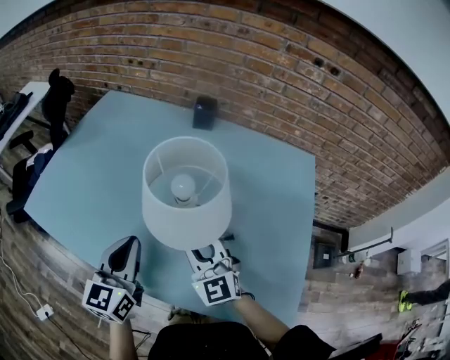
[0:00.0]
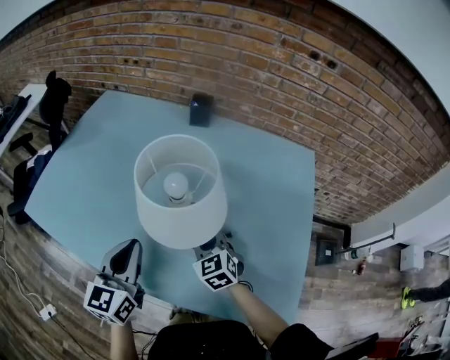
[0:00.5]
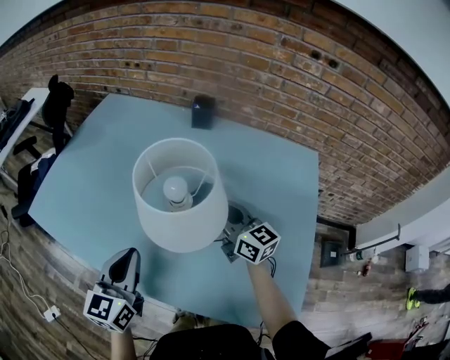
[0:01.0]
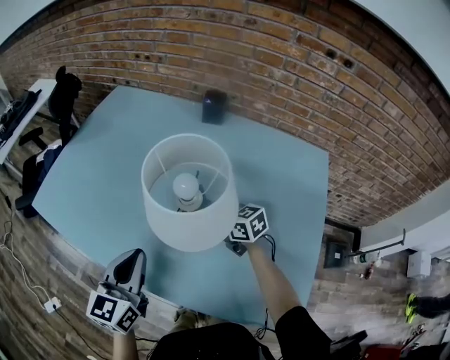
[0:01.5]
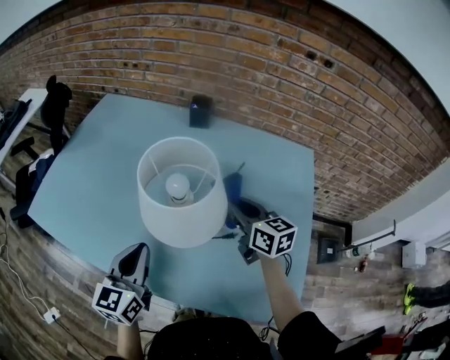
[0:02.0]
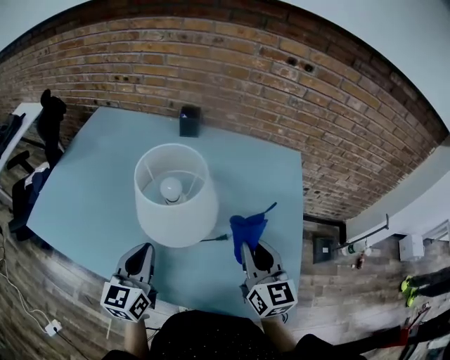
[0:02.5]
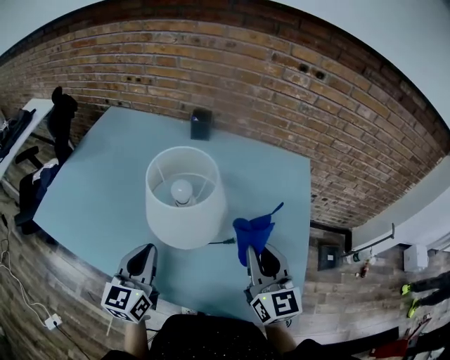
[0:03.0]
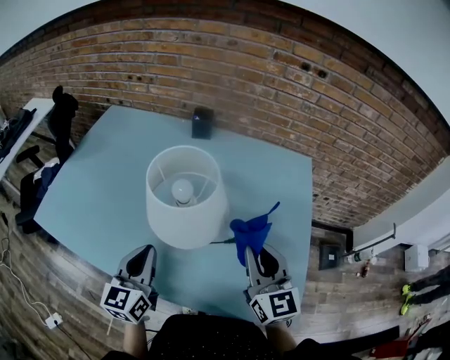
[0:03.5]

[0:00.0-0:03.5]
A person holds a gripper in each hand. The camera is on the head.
0:00.0 to 0:02.0: The right gripper goes left and right, roughly 15 cm each way, reversing 2 times, and rotates around the line of its fingers by about 50 degrees, clockwise from behind.
0:02.0 to 0:03.5: The right gripper moves backward and upward, approximately 15 cm, and changes its angle by some 30 degrees.

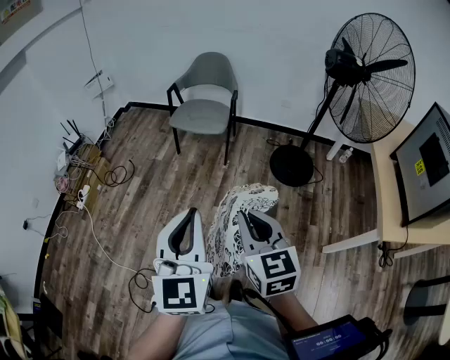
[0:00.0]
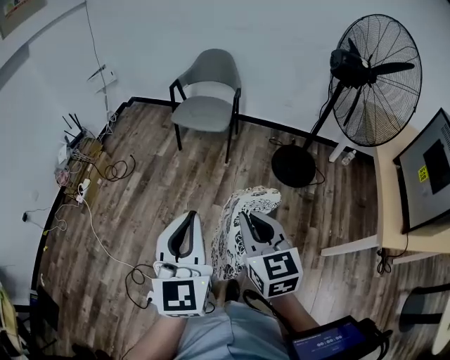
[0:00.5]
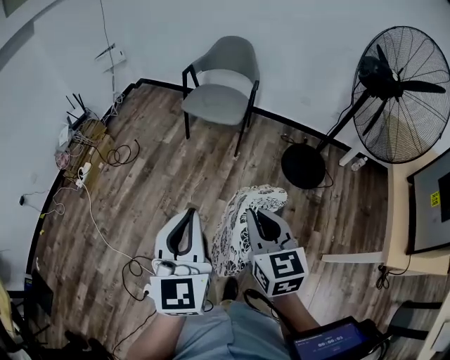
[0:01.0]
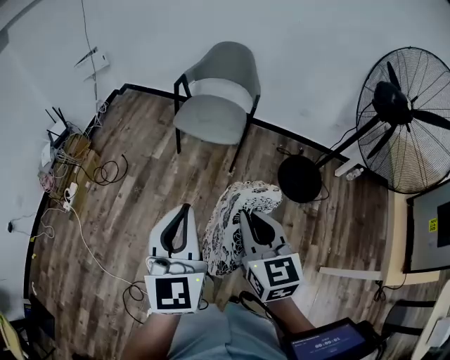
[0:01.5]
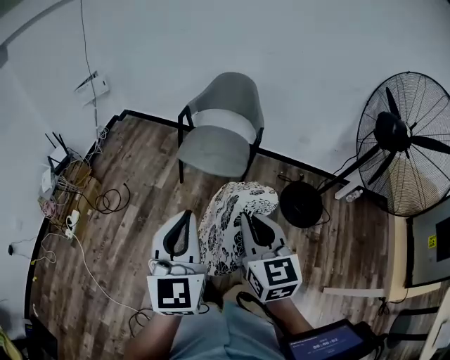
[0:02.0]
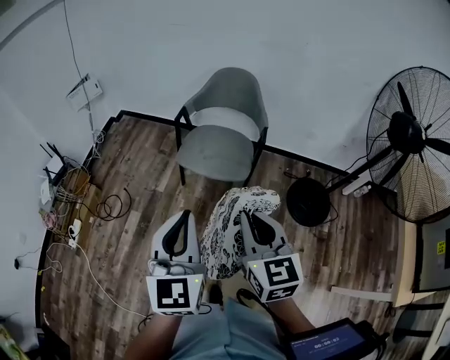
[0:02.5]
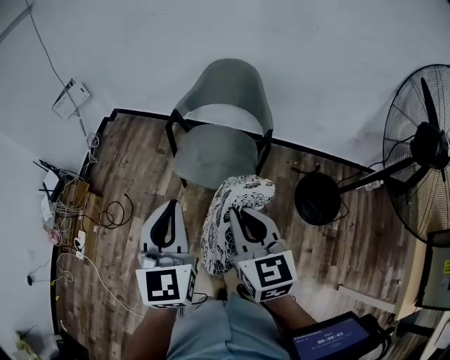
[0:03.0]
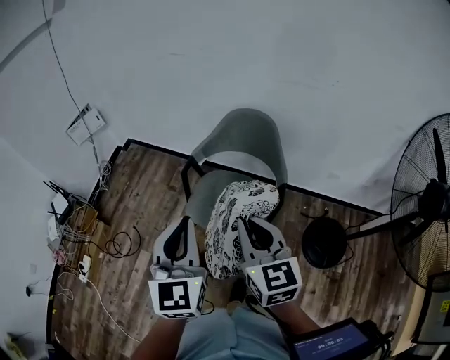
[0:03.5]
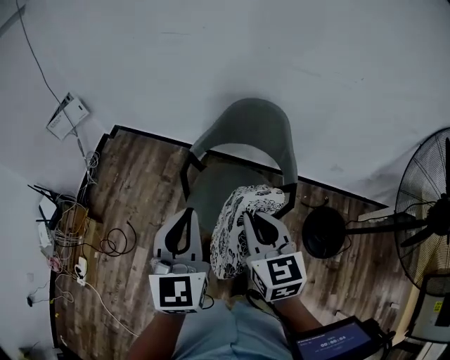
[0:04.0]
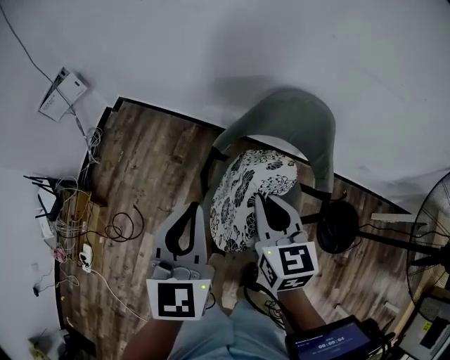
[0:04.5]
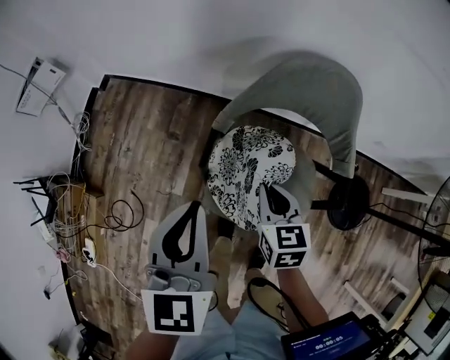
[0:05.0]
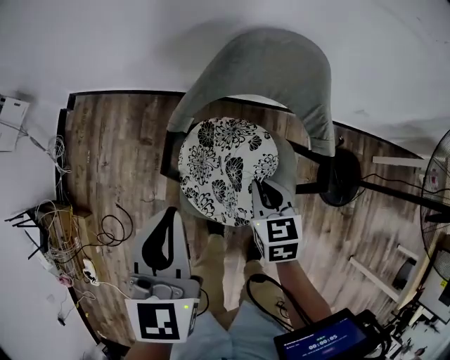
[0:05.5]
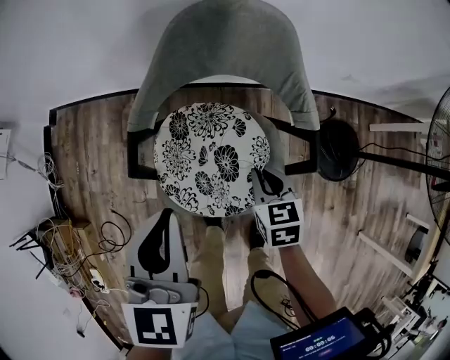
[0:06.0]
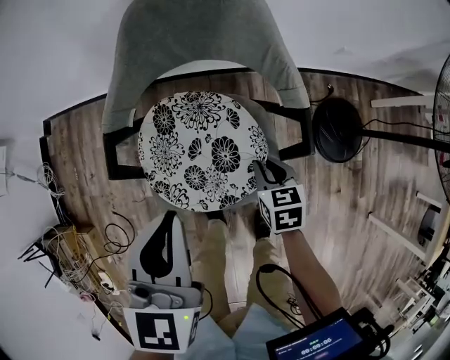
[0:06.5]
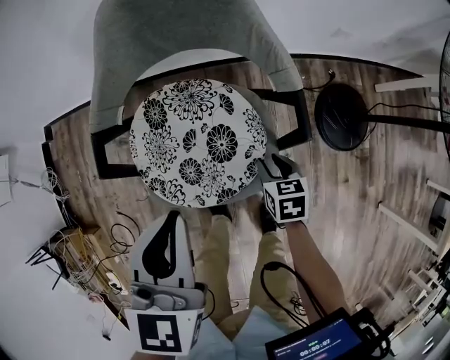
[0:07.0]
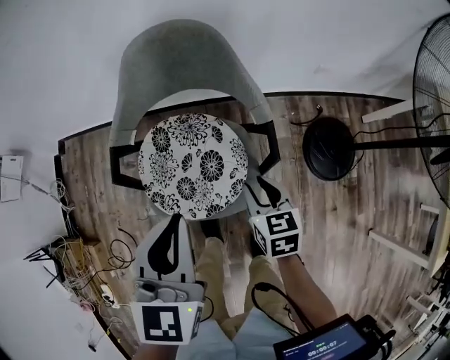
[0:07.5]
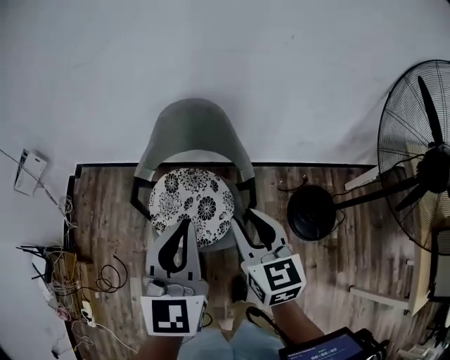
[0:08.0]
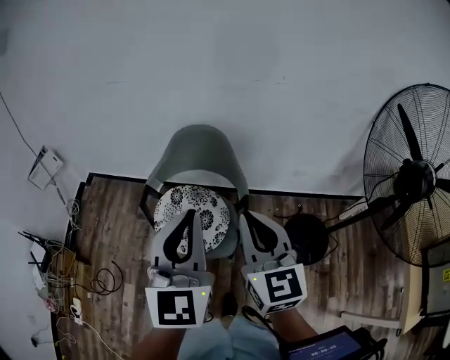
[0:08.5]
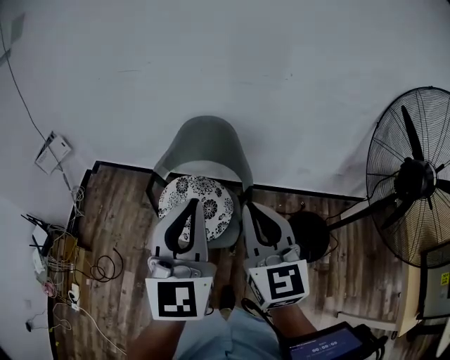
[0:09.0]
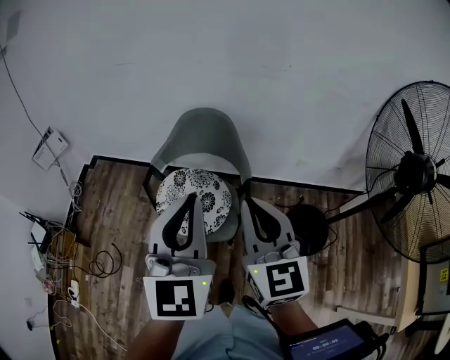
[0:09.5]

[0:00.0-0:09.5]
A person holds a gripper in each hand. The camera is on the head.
0:00.0 to 0:02.0: The grippers both shift forward by some 35 cm.
0:02.0 to 0:04.0: The pair of grippers is taken forward, some 50 cm.
0:04.0 to 0:05.5: The right gripper moves downward and forward, about 30 cm, and turns by about 30 degrees. The left gripper heads forward and downward, covering about 20 cm.
0:05.5 to 0:07.5: The right gripper is displaced to the right and backward by roughly 15 cm, travels downward and back again, roughly 20 cm each way, and opens up; the left gripper travels to the right by roughly 15 cm.
0:07.5 to 0:09.5: The left gripper heads upward and backward, covering approximately 30 cm, and rotates approximately 30 degrees; the right gripper is displaced upward by about 40 cm, tips its fingers upward by roughly 40 degrees, and closes its fingers.

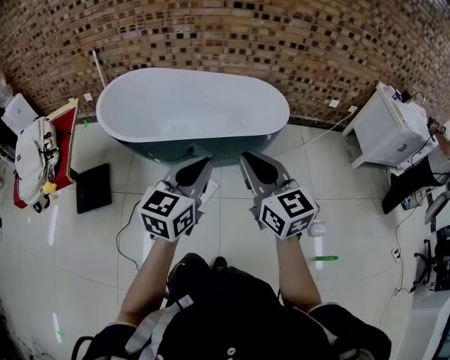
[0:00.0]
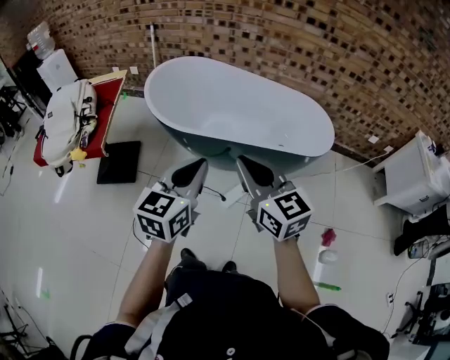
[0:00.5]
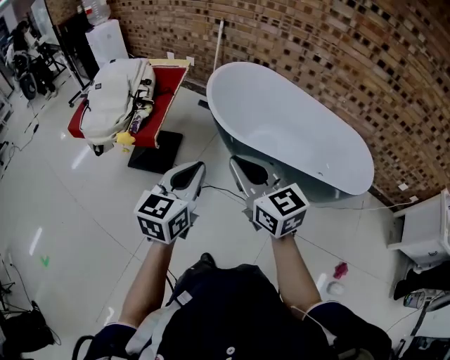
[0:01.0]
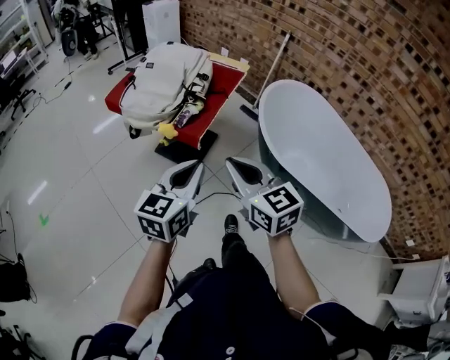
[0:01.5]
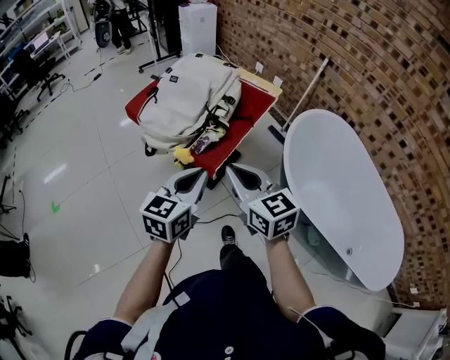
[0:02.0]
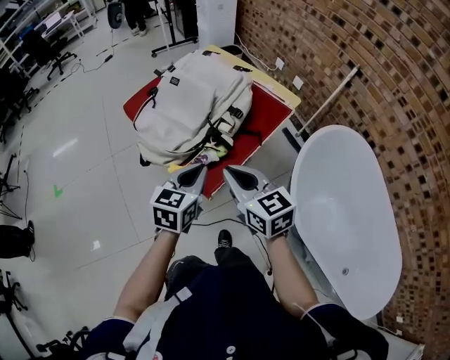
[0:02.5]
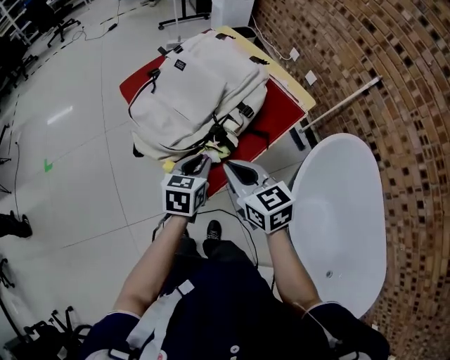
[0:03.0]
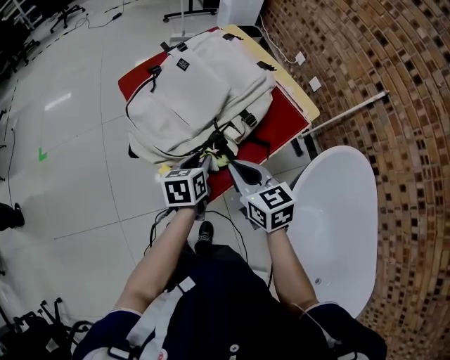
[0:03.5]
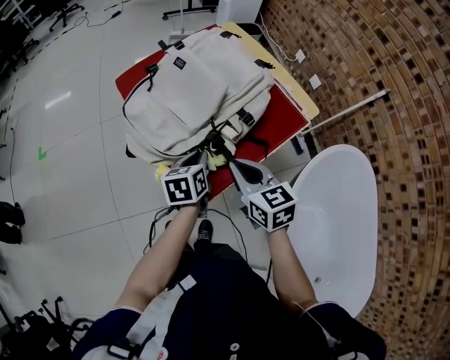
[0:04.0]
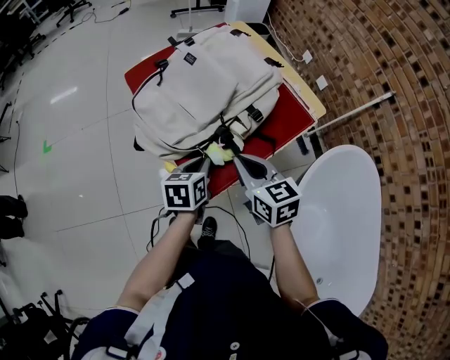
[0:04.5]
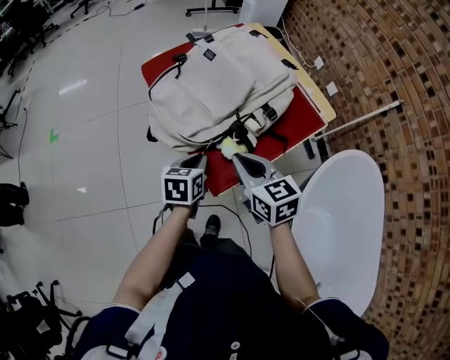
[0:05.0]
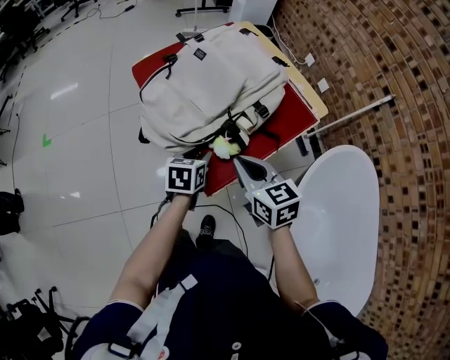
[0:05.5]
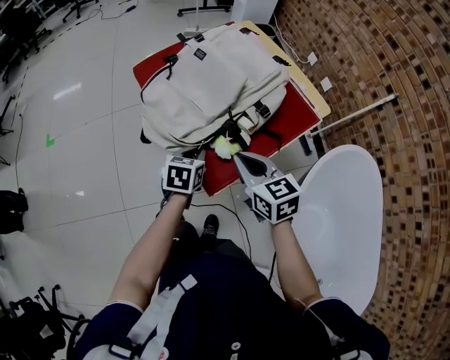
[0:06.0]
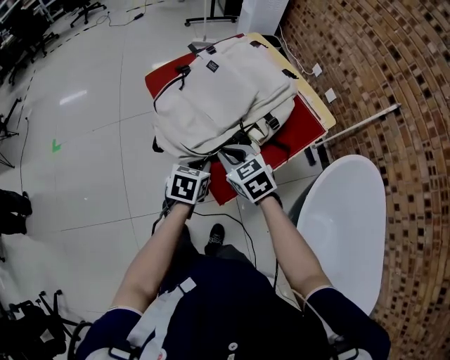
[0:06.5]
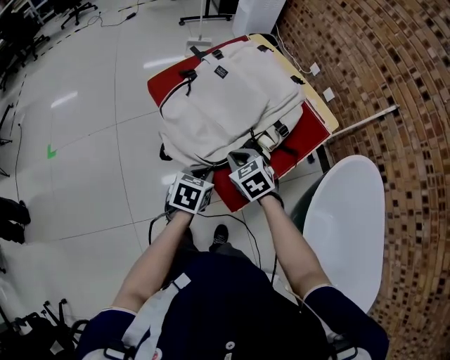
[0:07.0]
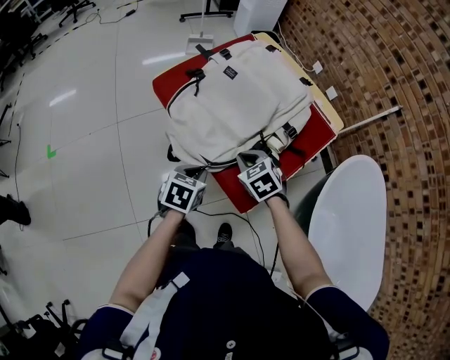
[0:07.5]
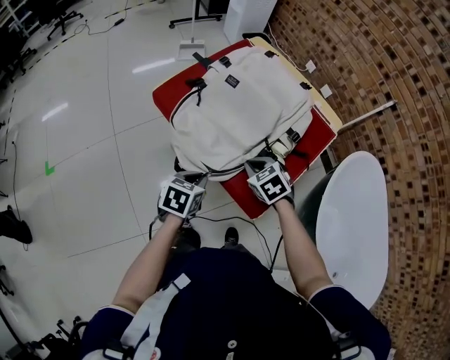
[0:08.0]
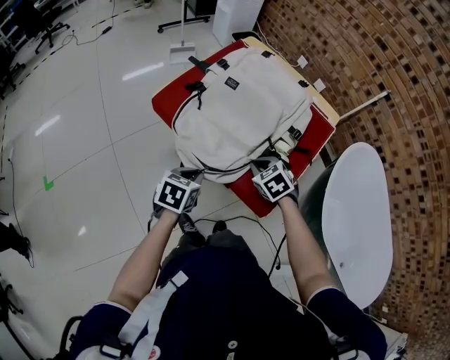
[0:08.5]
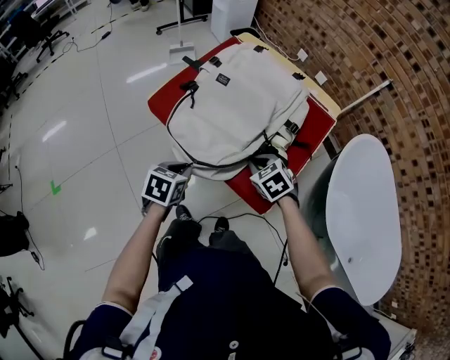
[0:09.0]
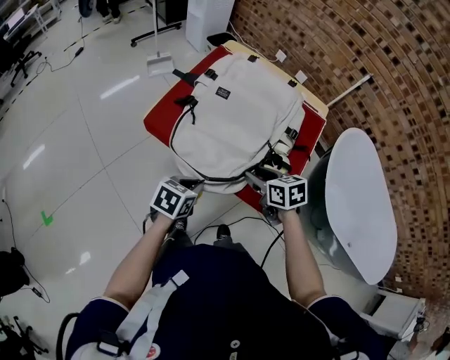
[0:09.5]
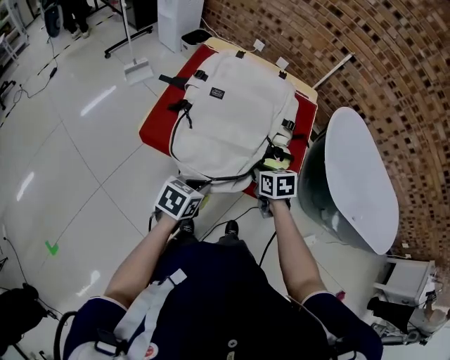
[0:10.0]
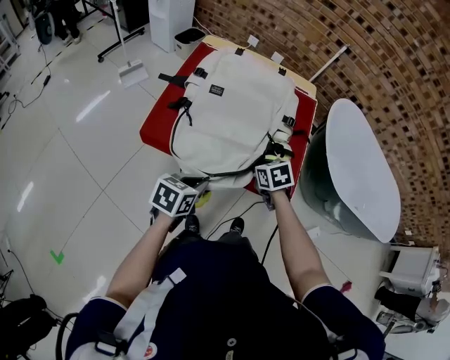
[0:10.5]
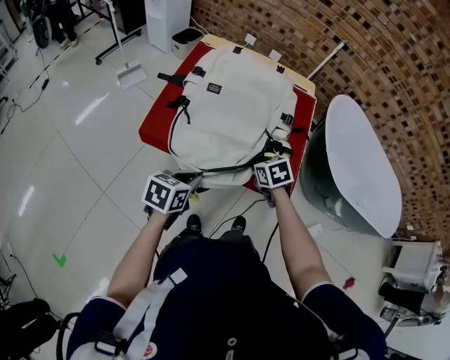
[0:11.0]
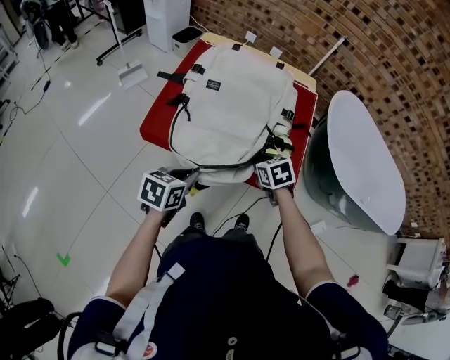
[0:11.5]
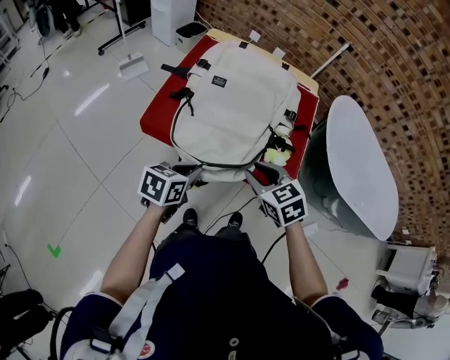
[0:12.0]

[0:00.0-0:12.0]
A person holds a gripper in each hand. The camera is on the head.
0:00.0 to 0:02.0: The two grippers travel together, approximately 70 cm. The left gripper changes its angle by approximately 50 degrees. The right gripper turns by approximately 60 degrees.
0:02.0 to 0:04.0: Both grippers travel together forward and downward, roughly 25 cm. The left gripper rotates approximately 50 degrees. The right gripper rotates roughly 20 degrees.
0:04.0 to 0:06.0: The left gripper changes place by some 5 cm, and opens and closes again.
0:06.0 to 0:08.0: The right gripper moves downward, to the left and forward, some 15 cm, and rotates about 30 degrees. The left gripper is displaced to the left by about 10 cm.
0:08.0 to 0:10.0: The right gripper rotates around the line of its fingers by some 50 degrees, clockwise from behind, and opens, then closes once more, while the left gripper changes place by approximately 5 cm, and turns by some 40 degrees.
0:10.0 to 0:12.0: The left gripper heads to the left, covering roughly 5 cm, while the right gripper heads upward and backward, covering roughly 10 cm, rotates roughly 20 degrees, and opens.

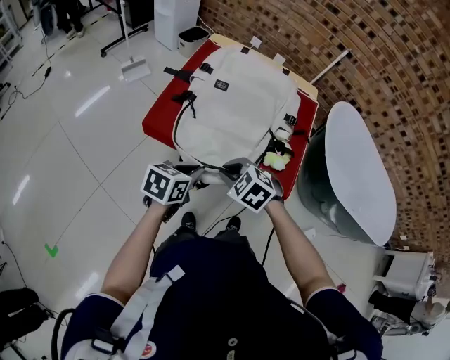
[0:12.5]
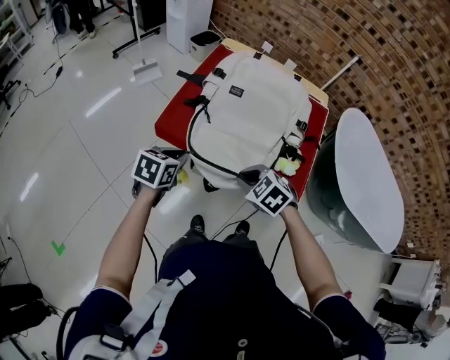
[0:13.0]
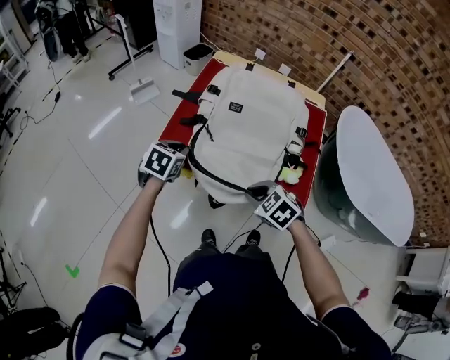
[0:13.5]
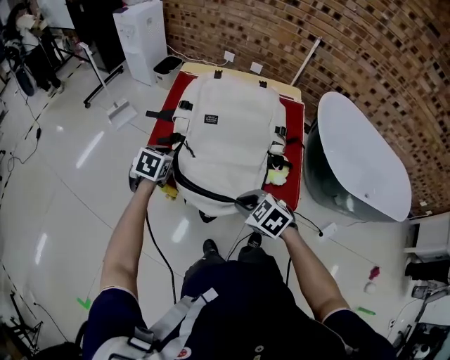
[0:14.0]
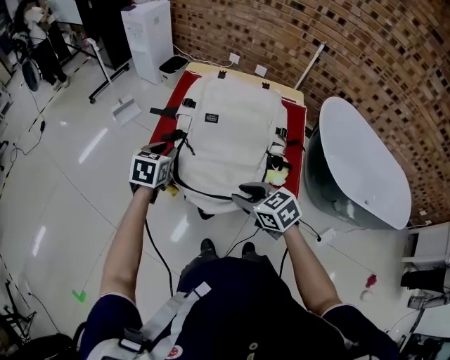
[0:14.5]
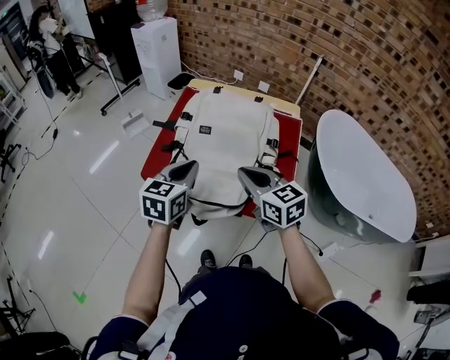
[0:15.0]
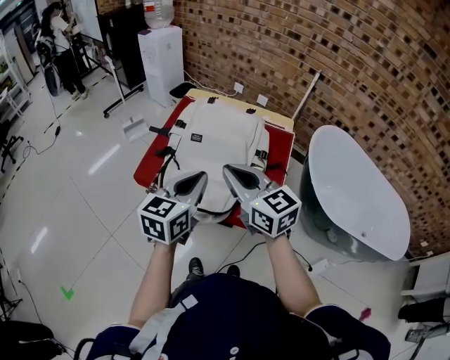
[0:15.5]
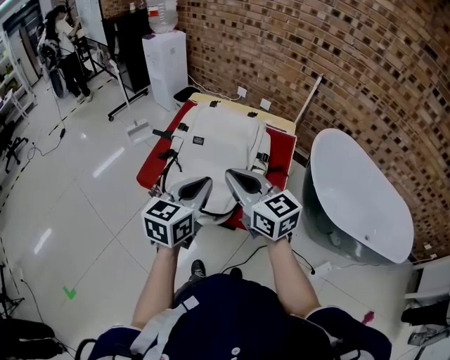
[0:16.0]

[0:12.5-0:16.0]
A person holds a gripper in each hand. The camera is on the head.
0:12.5 to 0:14.5: The left gripper heads forward, covering about 20 cm, swivels some 20 degrees, and opens. The right gripper moves some 5 cm, and swivels some 40 degrees.
0:14.5 to 0:16.0: The left gripper travels upward, to the right and backward by approximately 30 cm, changes its angle by roughly 30 degrees, and closes; the right gripper travels upward by approximately 20 cm, angles its fingers upward, by about 30 degrees, and closes up.
